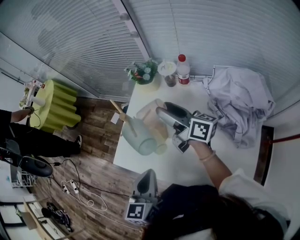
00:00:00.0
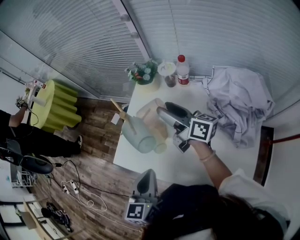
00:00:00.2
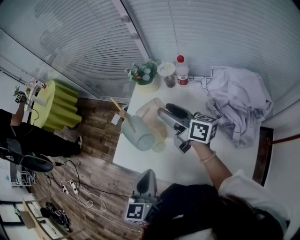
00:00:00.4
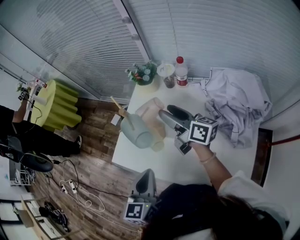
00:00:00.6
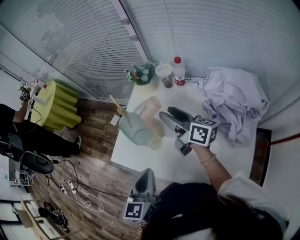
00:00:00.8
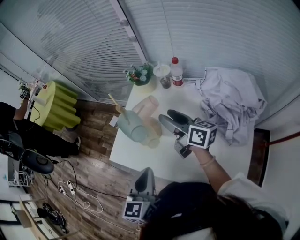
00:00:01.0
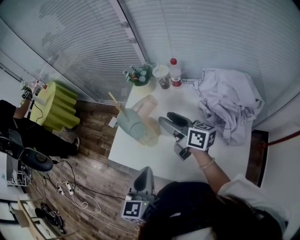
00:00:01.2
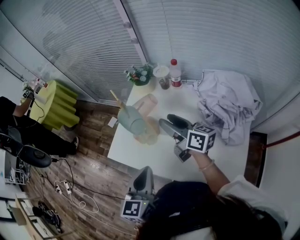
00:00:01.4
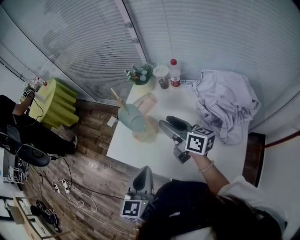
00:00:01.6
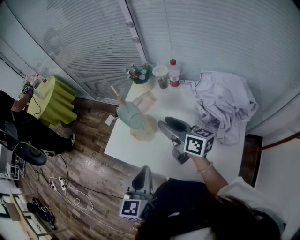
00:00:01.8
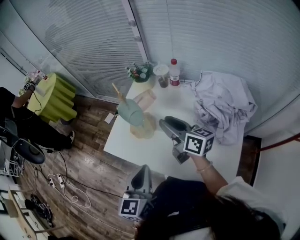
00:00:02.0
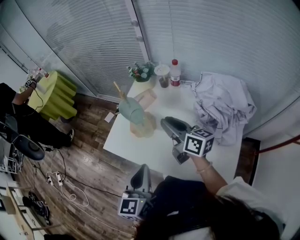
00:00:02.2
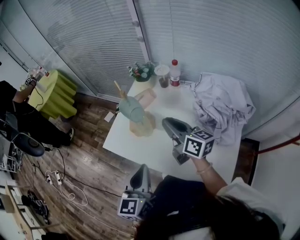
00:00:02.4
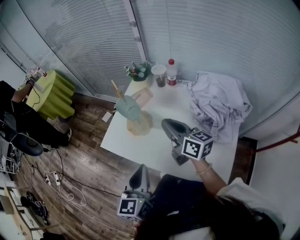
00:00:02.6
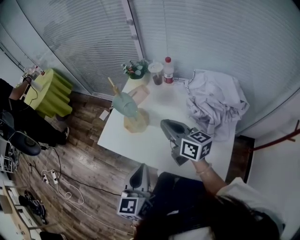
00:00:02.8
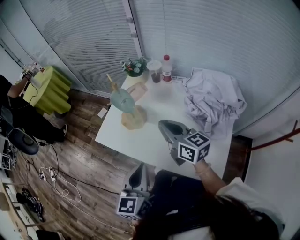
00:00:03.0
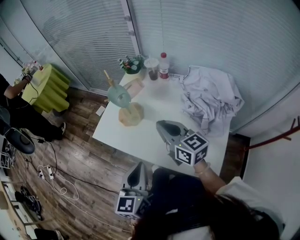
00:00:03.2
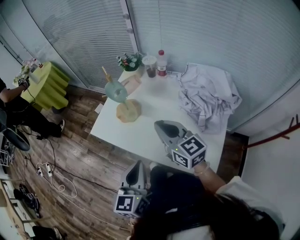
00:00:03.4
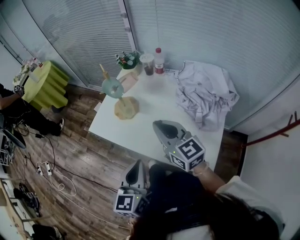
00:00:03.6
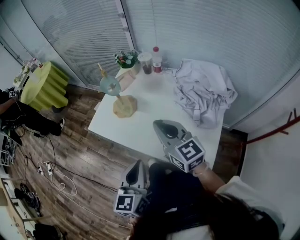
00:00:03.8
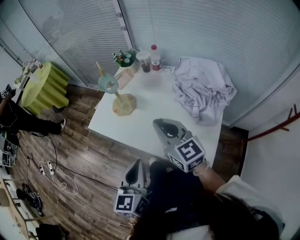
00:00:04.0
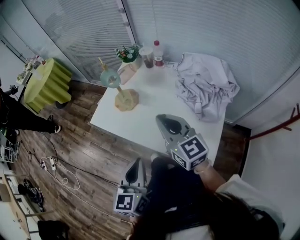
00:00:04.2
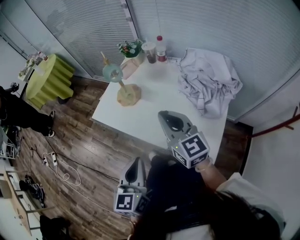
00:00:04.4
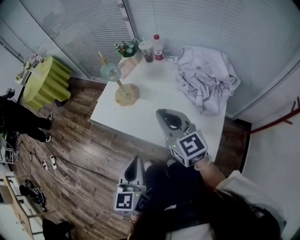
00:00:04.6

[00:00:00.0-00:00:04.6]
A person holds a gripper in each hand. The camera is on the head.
00:00:00.0 to 00:00:01.6: The right gripper travels backward by approximately 10 cm. The left gripper moves backward, some 5 cm.
00:00:01.6 to 00:00:03.0: Both grippers move backward, some 10 cm. The right gripper closes its fingers.
00:00:03.0 to 00:00:04.6: The grippers both shift backward by some 10 cm. The right gripper rotates about 20 degrees.

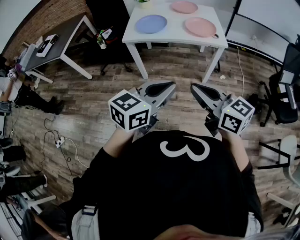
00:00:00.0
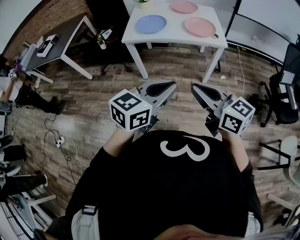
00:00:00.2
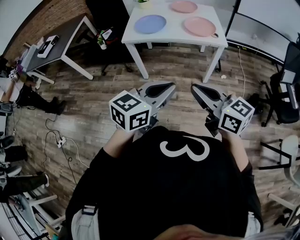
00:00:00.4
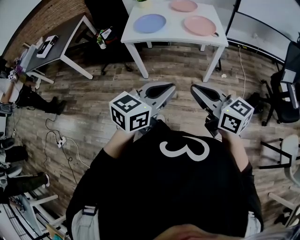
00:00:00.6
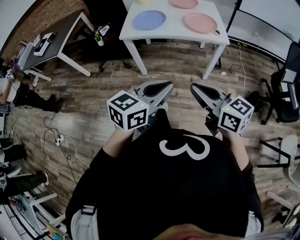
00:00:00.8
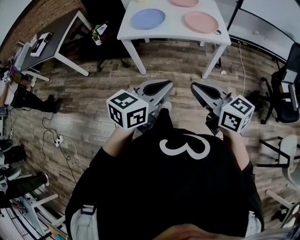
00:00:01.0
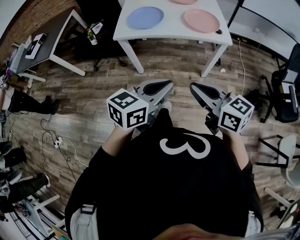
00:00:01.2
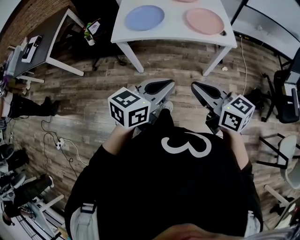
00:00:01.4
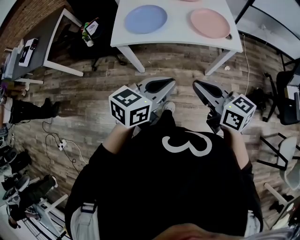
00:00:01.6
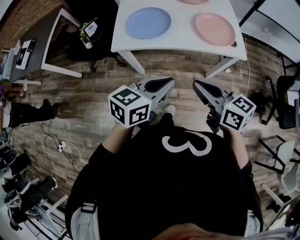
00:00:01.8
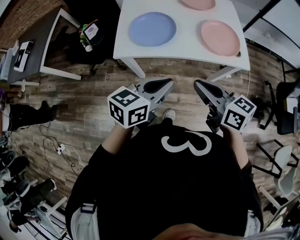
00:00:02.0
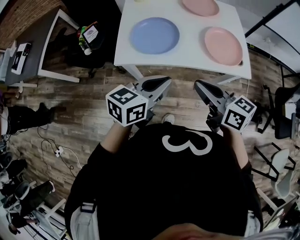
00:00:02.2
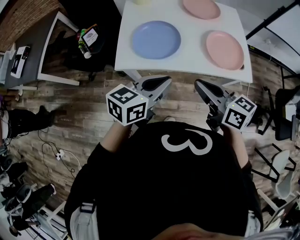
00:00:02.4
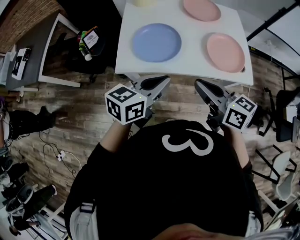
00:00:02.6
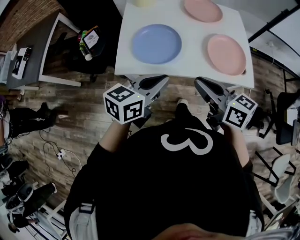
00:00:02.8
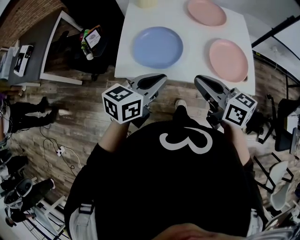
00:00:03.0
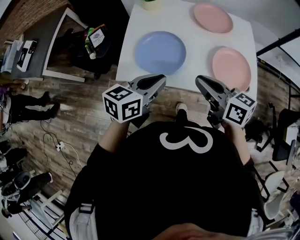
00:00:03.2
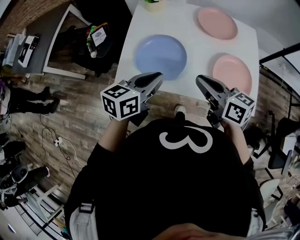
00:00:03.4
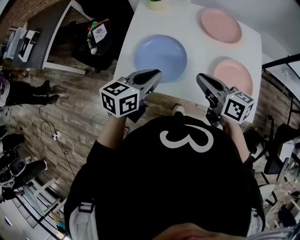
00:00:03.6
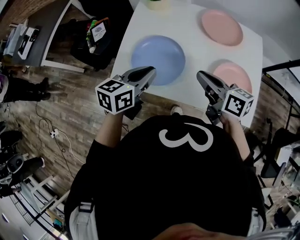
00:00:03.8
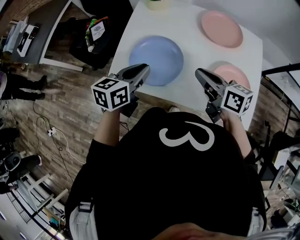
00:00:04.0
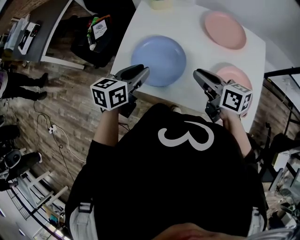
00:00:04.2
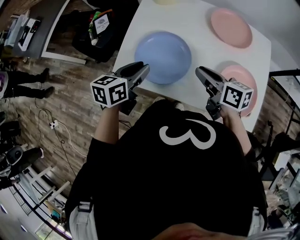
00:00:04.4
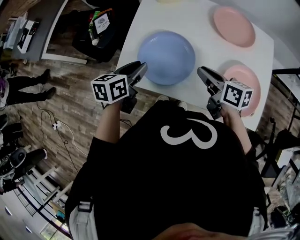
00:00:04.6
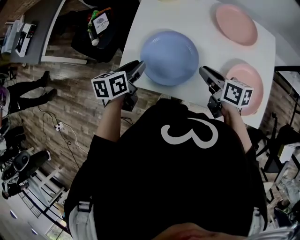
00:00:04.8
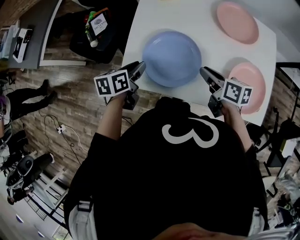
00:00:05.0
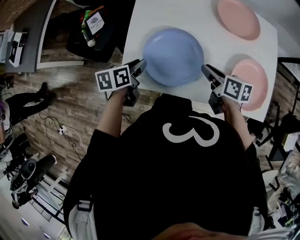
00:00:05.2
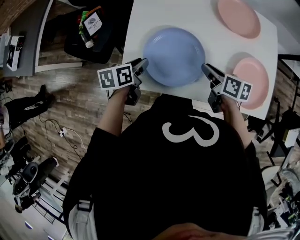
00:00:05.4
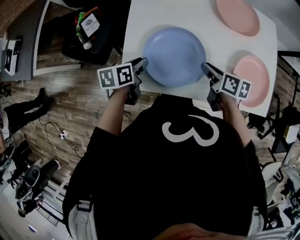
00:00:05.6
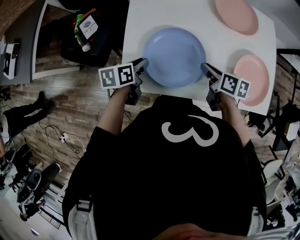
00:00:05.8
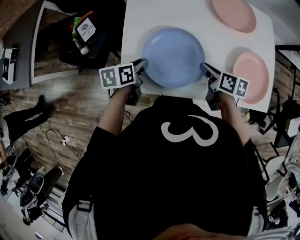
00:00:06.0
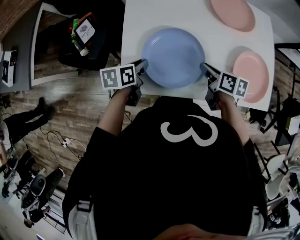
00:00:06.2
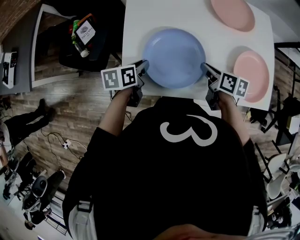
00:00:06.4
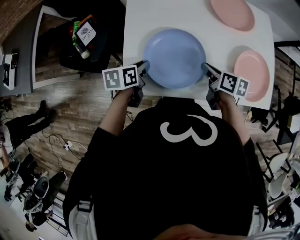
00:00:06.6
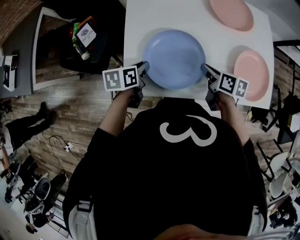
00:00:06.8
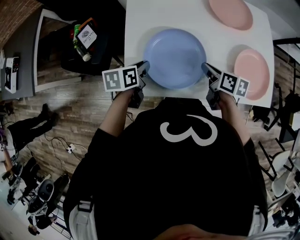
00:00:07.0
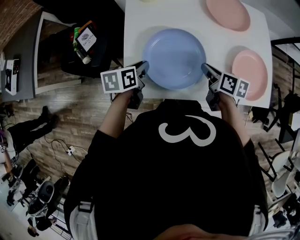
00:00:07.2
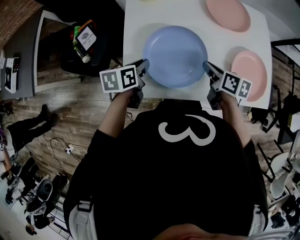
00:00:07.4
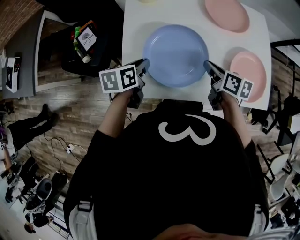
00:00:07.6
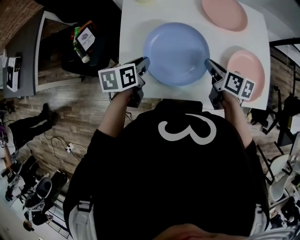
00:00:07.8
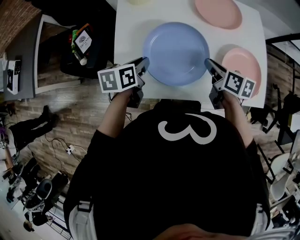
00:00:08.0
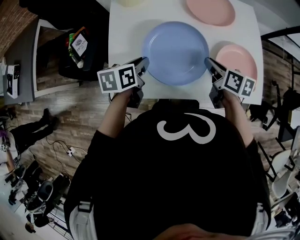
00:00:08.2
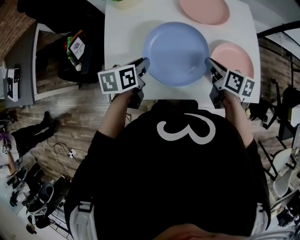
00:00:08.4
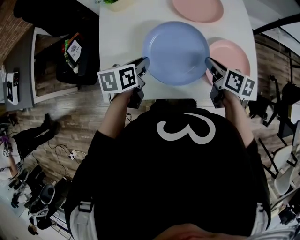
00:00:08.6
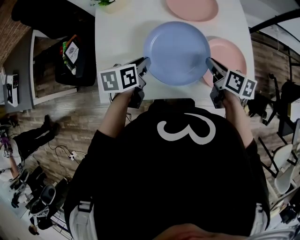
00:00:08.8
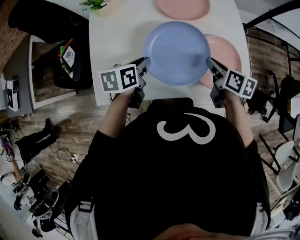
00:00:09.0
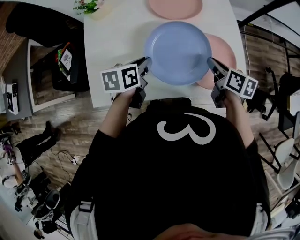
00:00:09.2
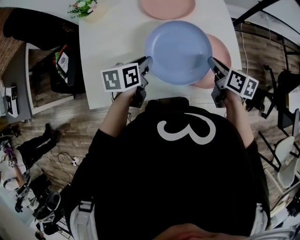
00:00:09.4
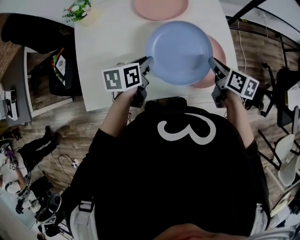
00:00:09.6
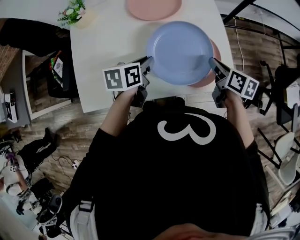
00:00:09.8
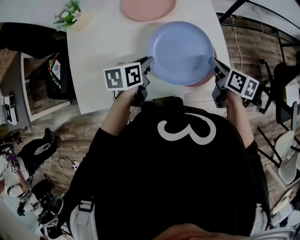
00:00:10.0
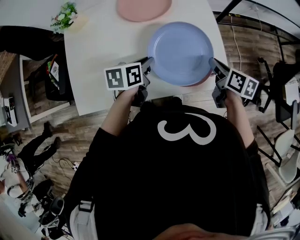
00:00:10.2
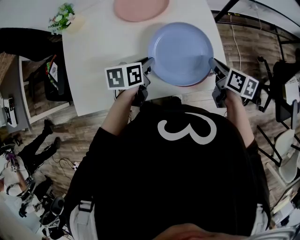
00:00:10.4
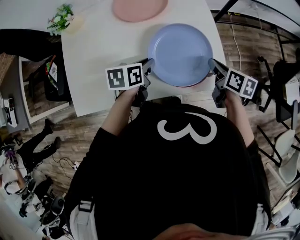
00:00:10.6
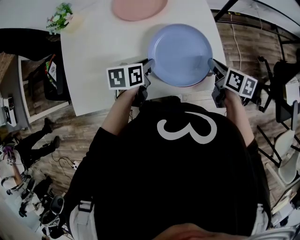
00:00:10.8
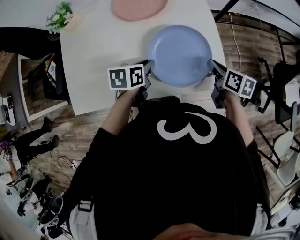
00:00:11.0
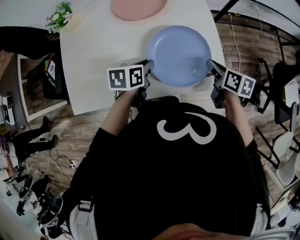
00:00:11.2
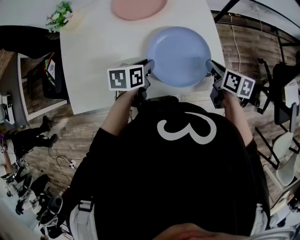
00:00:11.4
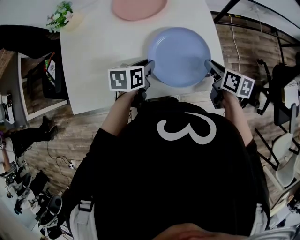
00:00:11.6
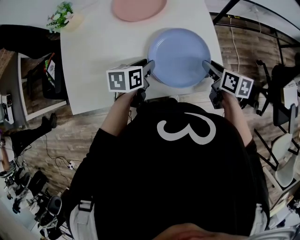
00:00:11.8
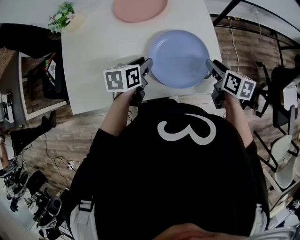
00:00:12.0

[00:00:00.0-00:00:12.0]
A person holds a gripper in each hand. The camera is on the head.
00:00:00.0 to 00:00:01.6: Both grippers travel together forward, about 25 cm.
00:00:01.6 to 00:00:03.0: Both grippers travel together forward, about 25 cm.
00:00:03.0 to 00:00:04.4: The grippers both shift forward and downward by about 20 cm. The left gripper turns by some 30 degrees, and opens its fingers.
00:00:04.4 to 00:00:06.0: The right gripper moves downward, some 10 cm, and swivels approximately 30 degrees, while the left gripper travels downward, forward and to the left by approximately 15 cm, and rotates some 20 degrees.
00:00:06.0 to 00:00:07.6: The right gripper ends up about 5 cm from where it was, while the left gripper is displaced upward by some 5 cm.
00:00:07.6 to 00:00:09.0: Both grippers move to the right, about 20 cm.
00:00:09.0 to 00:00:10.4: Both grippers travel together to the right, some 15 cm.
00:00:10.4 to 00:00:12.0: The right gripper opens its fingers.

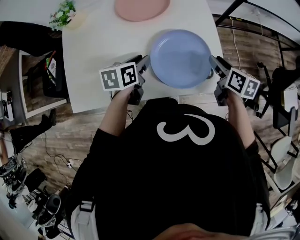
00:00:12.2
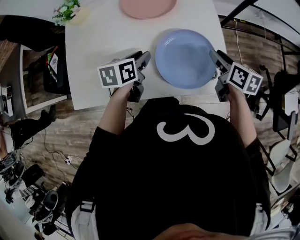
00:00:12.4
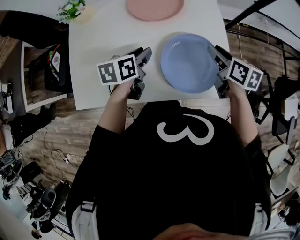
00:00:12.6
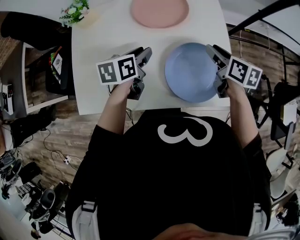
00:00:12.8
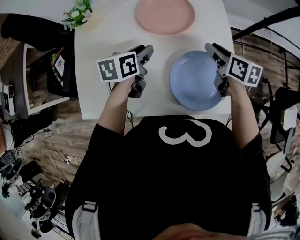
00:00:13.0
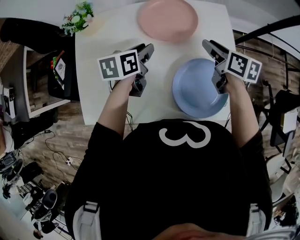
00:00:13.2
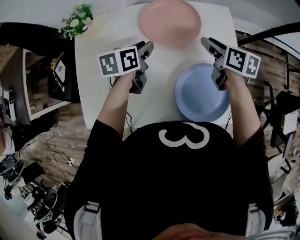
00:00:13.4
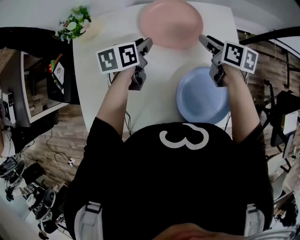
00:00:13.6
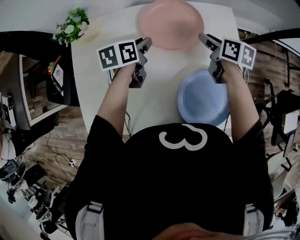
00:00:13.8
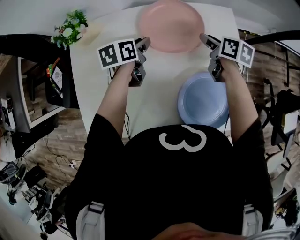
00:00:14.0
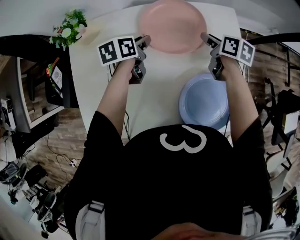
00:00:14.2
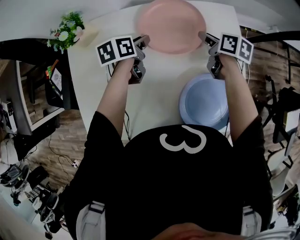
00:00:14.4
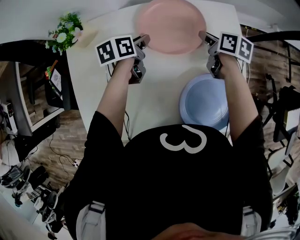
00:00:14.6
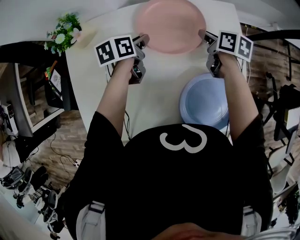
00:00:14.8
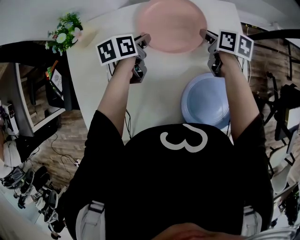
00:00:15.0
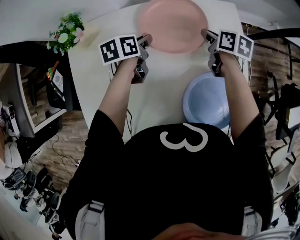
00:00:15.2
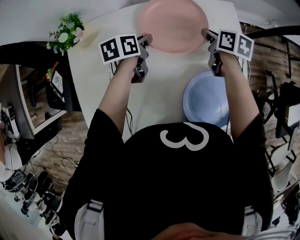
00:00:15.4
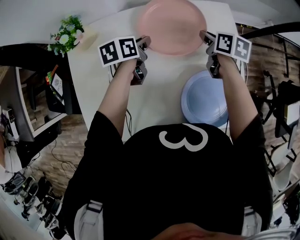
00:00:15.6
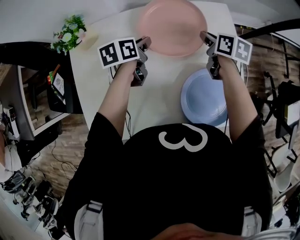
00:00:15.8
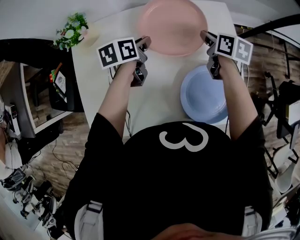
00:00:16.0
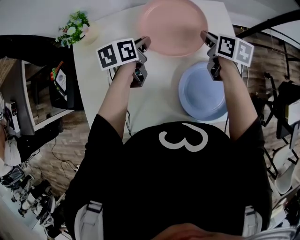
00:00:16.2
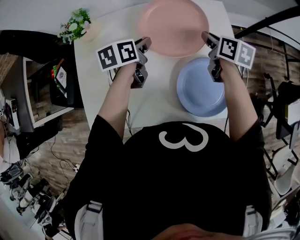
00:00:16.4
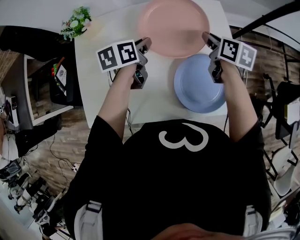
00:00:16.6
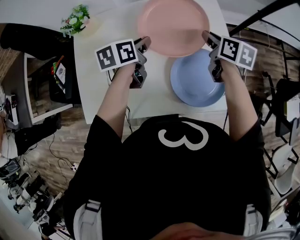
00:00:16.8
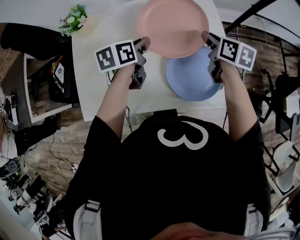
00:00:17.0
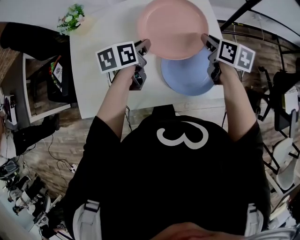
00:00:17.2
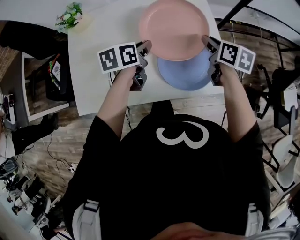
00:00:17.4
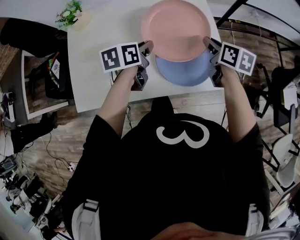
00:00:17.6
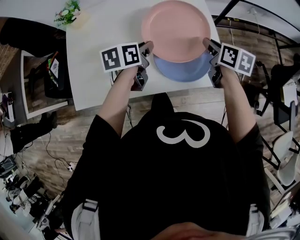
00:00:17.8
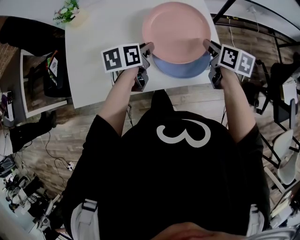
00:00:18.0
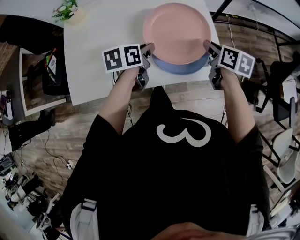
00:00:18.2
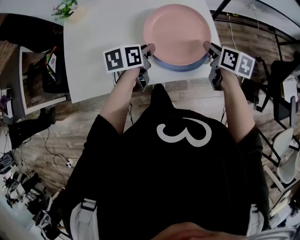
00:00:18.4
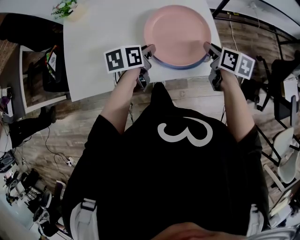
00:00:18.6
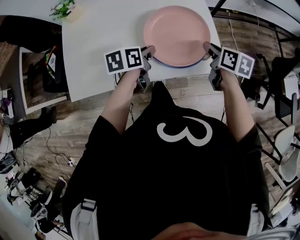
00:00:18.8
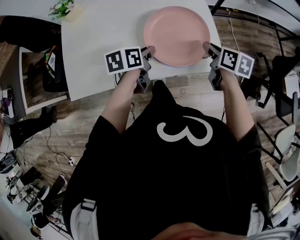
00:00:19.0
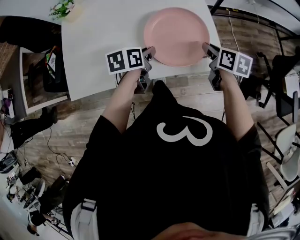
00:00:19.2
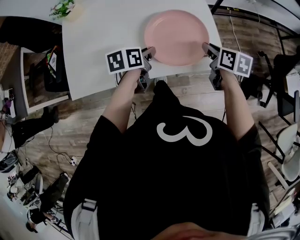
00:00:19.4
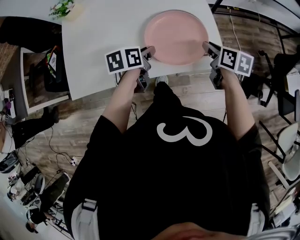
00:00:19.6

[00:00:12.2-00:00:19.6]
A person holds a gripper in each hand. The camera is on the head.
00:00:12.2 to 00:00:13.6: Both grippers move forward and to the left, some 25 cm.
00:00:13.6 to 00:00:15.2: Both grippers move downward, some 5 cm.
00:00:15.2 to 00:00:16.6: Both grippers move upward and backward, roughly 15 cm.
00:00:16.6 to 00:00:18.2: Both grippers move backward and to the right, approximately 20 cm.
00:00:18.2 to 00:00:19.6: The right gripper ends up roughly 5 cm from where it was, while the left gripper changes place by approximately 5 cm.
